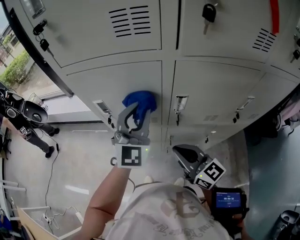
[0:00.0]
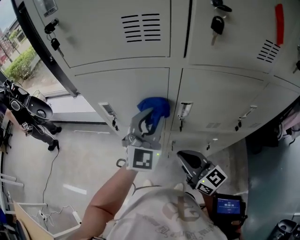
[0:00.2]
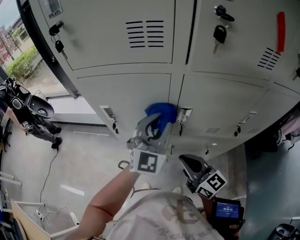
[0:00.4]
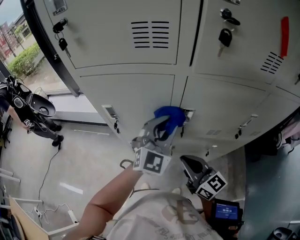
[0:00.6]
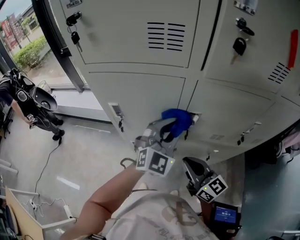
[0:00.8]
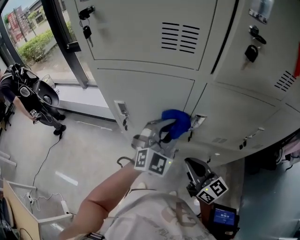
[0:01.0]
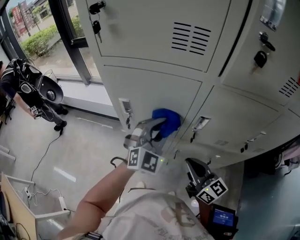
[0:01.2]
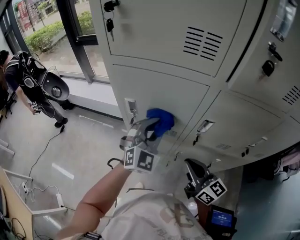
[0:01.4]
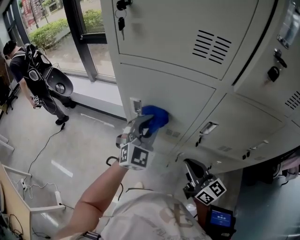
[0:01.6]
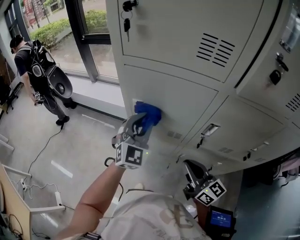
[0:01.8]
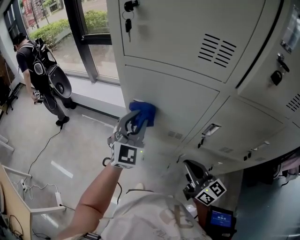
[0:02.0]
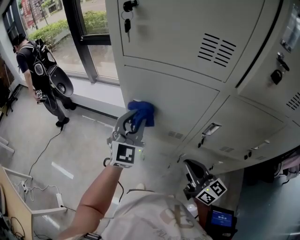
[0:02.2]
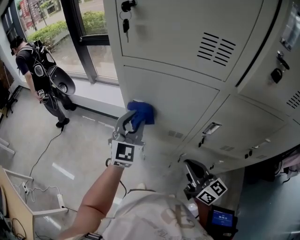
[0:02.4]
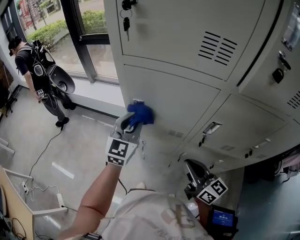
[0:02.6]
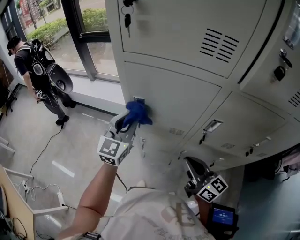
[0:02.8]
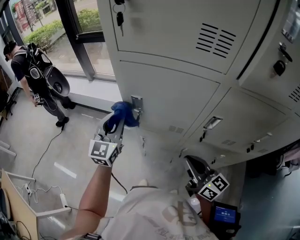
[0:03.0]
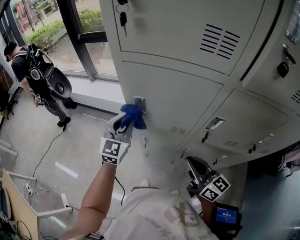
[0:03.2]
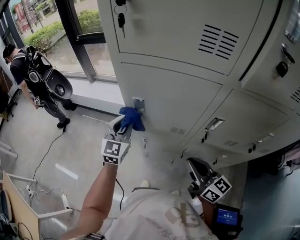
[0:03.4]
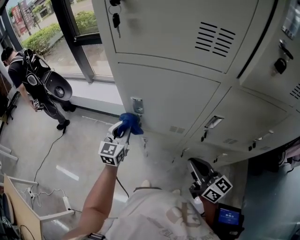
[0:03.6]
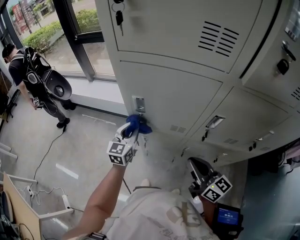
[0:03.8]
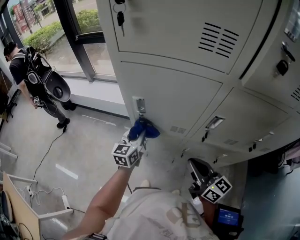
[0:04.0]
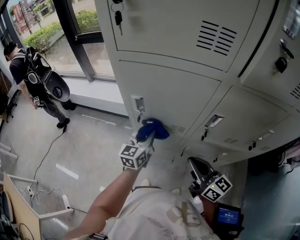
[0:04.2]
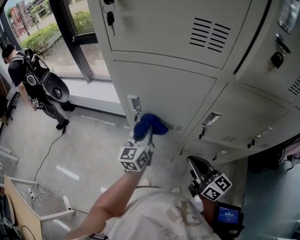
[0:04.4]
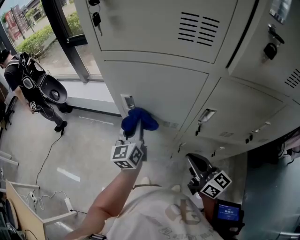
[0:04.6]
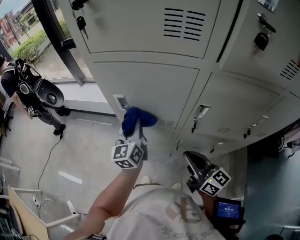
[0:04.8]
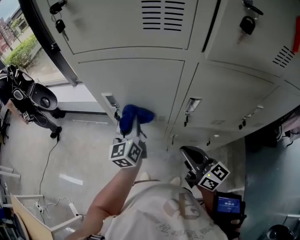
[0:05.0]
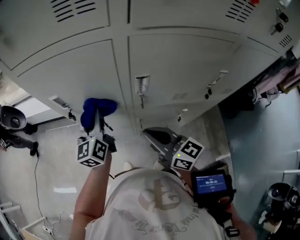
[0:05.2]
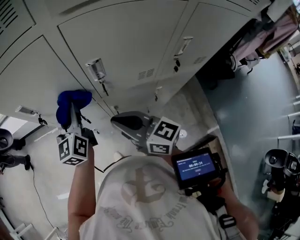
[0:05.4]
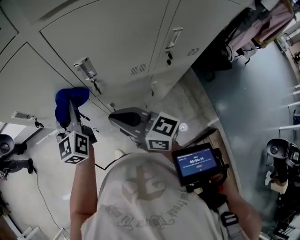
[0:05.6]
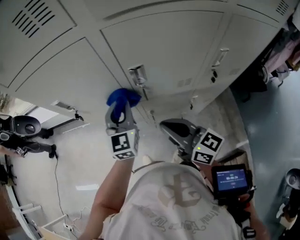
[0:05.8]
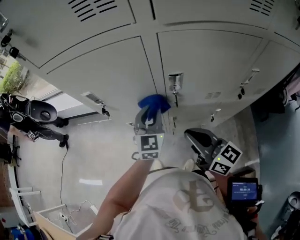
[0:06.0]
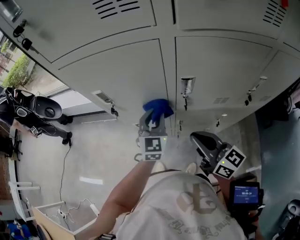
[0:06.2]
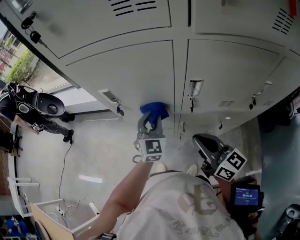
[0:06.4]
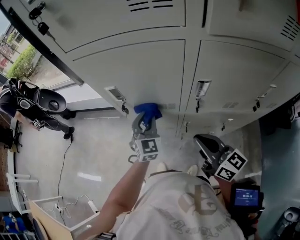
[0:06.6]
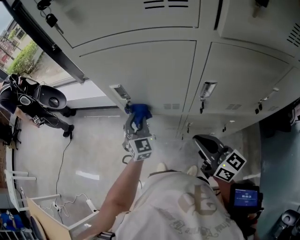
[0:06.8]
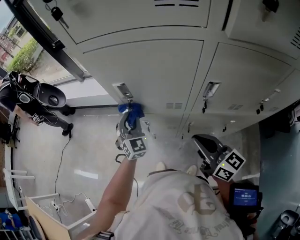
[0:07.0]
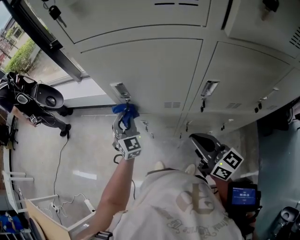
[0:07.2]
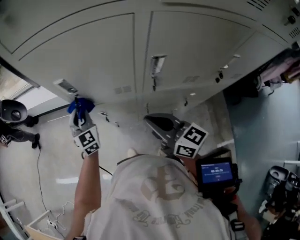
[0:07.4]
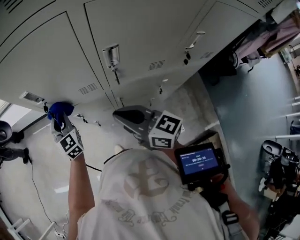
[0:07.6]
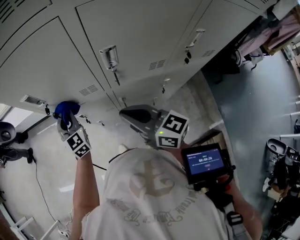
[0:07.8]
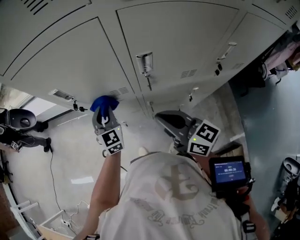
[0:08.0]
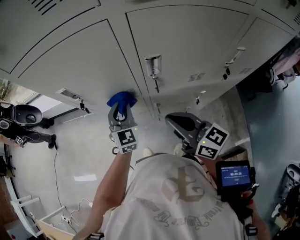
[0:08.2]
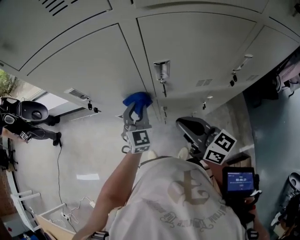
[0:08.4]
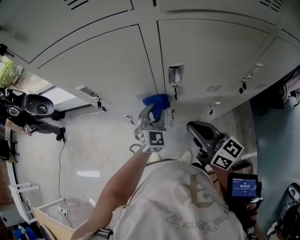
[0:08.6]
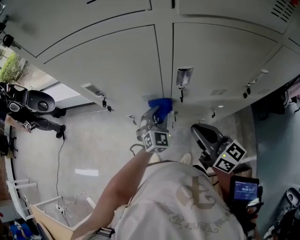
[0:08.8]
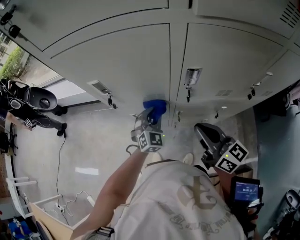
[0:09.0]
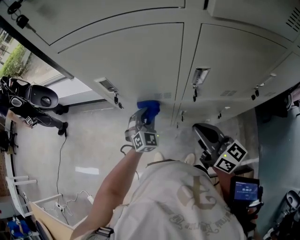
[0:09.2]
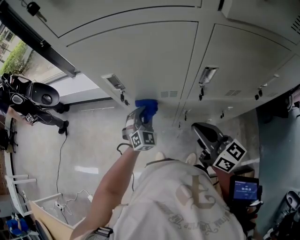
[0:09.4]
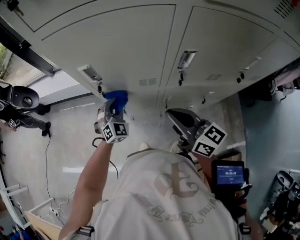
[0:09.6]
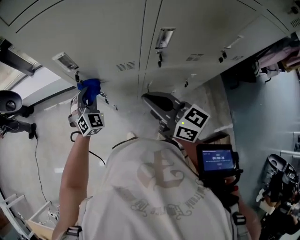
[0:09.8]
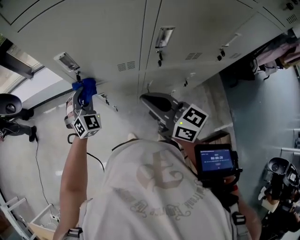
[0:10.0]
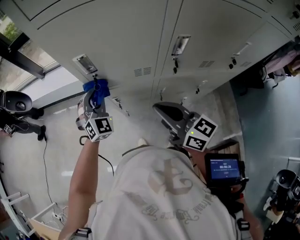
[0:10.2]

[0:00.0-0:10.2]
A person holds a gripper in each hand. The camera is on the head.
0:00.0 to 0:01.4: The left gripper shifts roughly 5 cm downward, and moves about 5 cm to the right and comes back.
0:01.4 to 0:03.0: The left gripper travels to the left by about 20 cm, and changes its angle by roughly 30 degrees.
0:03.0 to 0:04.4: The left gripper shifts approximately 15 cm to the right and downward, and swivels some 30 degrees.
0:04.4 to 0:05.8: The left gripper is displaced to the right by some 15 cm, and swivels some 30 degrees, while the right gripper shifts approximately 5 cm to the right.
0:05.8 to 0:07.2: The right gripper is displaced to the left by roughly 5 cm, while the left gripper is displaced to the left by some 20 cm, and rotates some 30 degrees.
0:07.2 to 0:08.8: The right gripper moves to the right, roughly 5 cm; the left gripper travels to the right and backward by approximately 25 cm, and swivels approximately 30 degrees.
0:08.8 to 0:10.2: The left gripper heads to the left, covering roughly 25 cm, and rotates approximately 20 degrees, while the right gripper goes some 15 cm to the left.

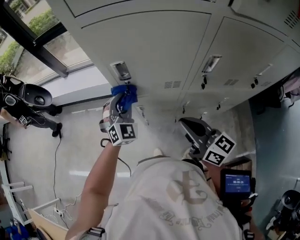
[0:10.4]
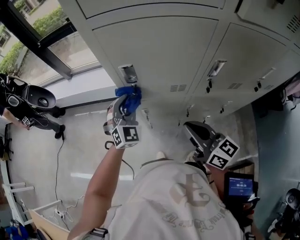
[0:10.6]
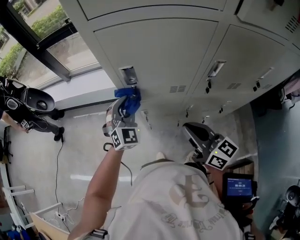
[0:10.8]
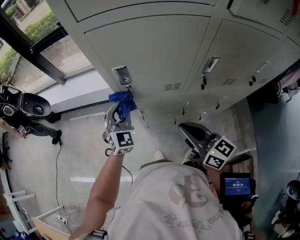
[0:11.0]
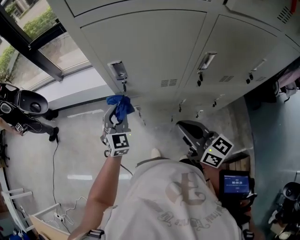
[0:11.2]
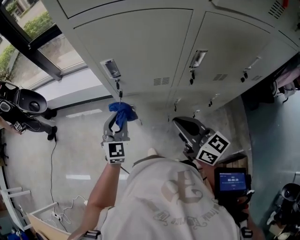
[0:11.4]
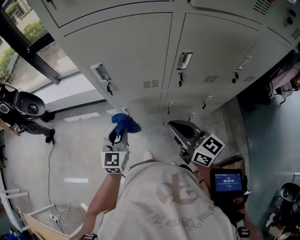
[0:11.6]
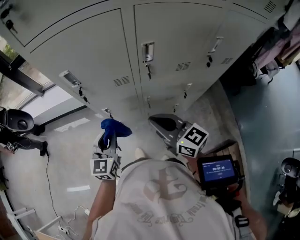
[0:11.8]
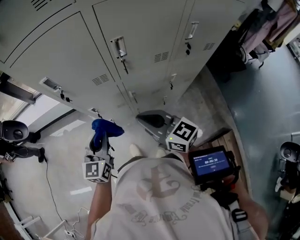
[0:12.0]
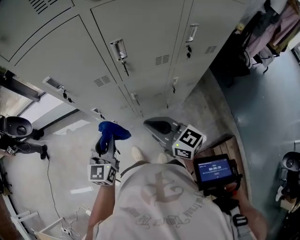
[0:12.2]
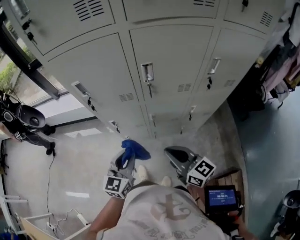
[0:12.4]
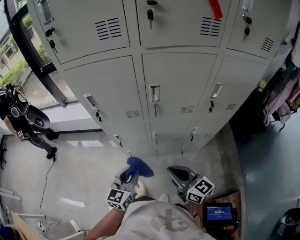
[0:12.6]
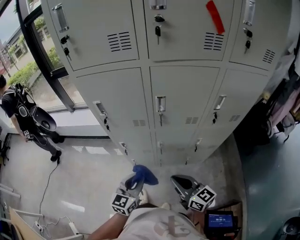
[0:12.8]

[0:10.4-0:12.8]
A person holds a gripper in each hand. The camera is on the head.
0:10.4 to 0:11.6: The left gripper heads backward, covering roughly 15 cm, and turns by roughly 40 degrees; the right gripper changes place by roughly 5 cm.
0:11.6 to 0:12.8: The two grippers go roughly 20 cm backward and to the right.

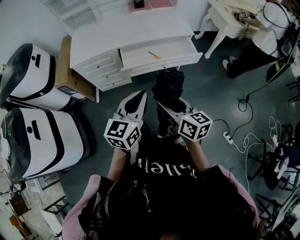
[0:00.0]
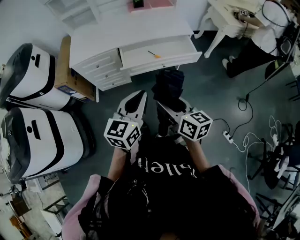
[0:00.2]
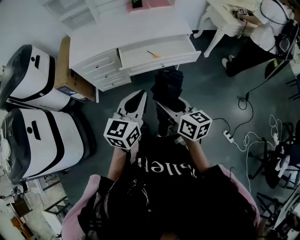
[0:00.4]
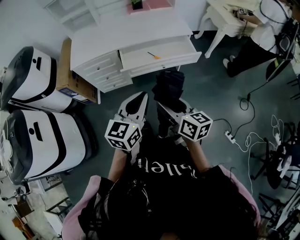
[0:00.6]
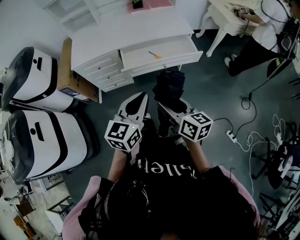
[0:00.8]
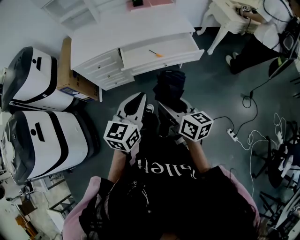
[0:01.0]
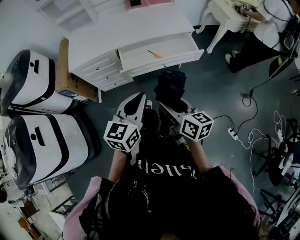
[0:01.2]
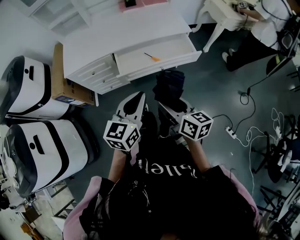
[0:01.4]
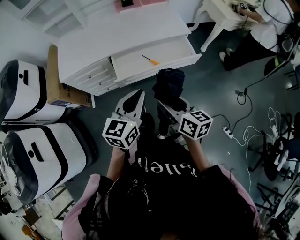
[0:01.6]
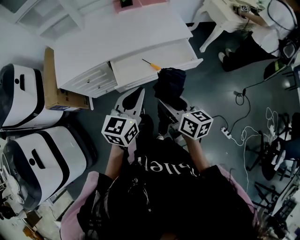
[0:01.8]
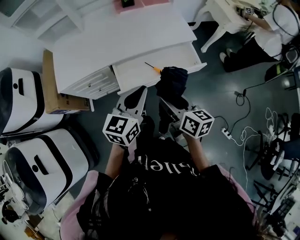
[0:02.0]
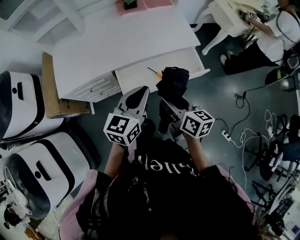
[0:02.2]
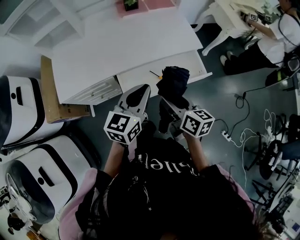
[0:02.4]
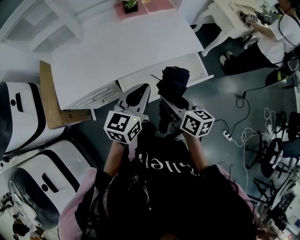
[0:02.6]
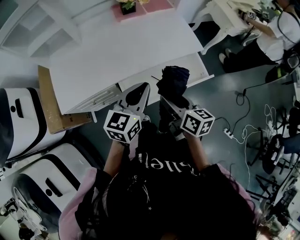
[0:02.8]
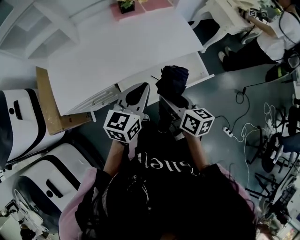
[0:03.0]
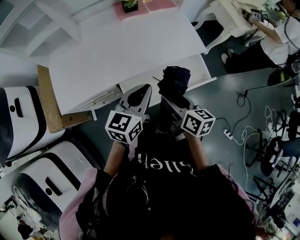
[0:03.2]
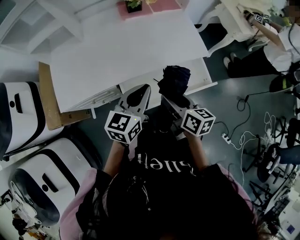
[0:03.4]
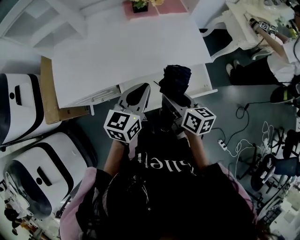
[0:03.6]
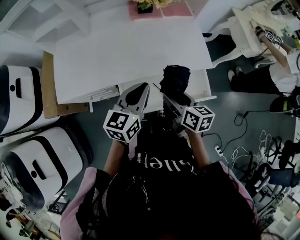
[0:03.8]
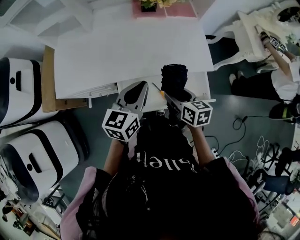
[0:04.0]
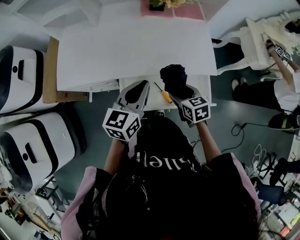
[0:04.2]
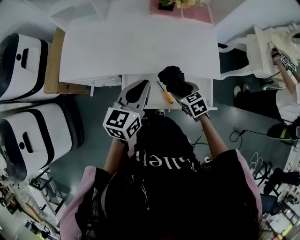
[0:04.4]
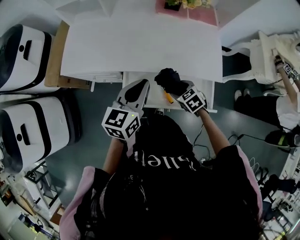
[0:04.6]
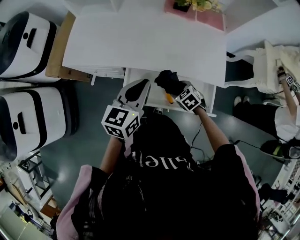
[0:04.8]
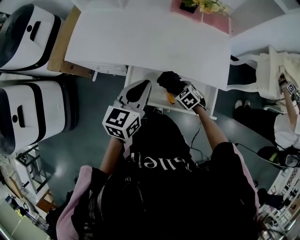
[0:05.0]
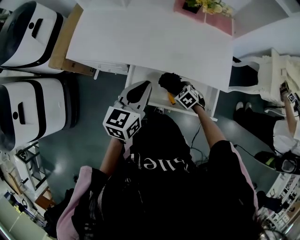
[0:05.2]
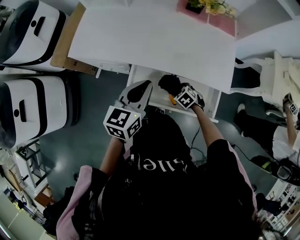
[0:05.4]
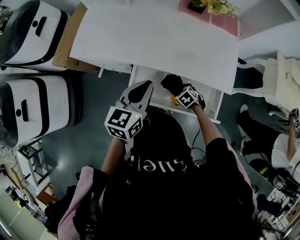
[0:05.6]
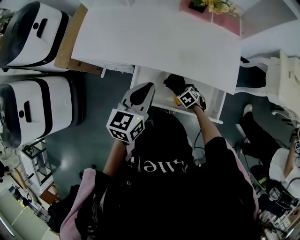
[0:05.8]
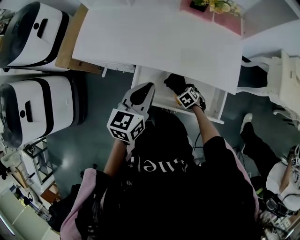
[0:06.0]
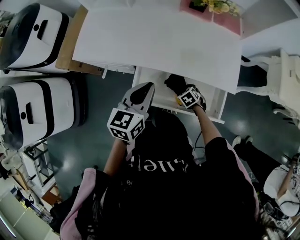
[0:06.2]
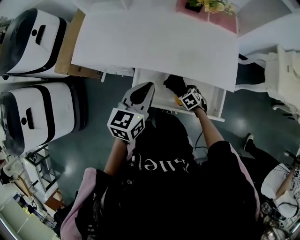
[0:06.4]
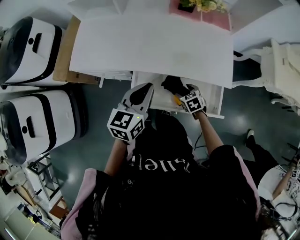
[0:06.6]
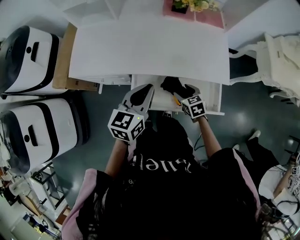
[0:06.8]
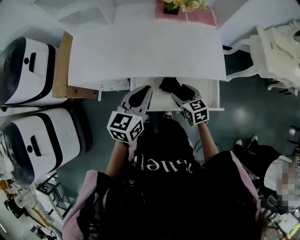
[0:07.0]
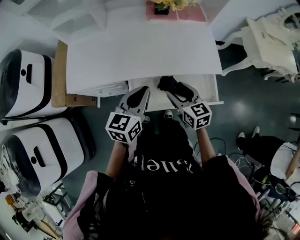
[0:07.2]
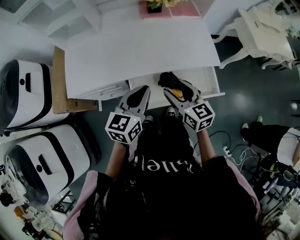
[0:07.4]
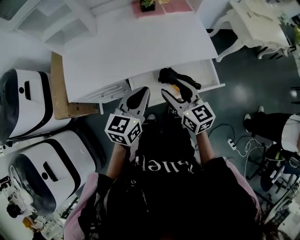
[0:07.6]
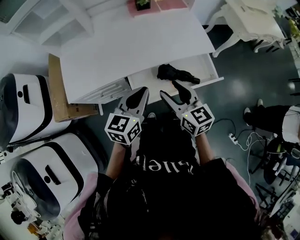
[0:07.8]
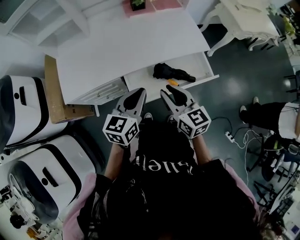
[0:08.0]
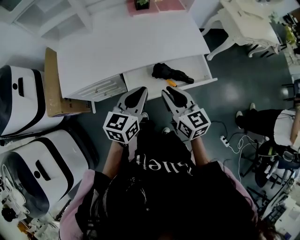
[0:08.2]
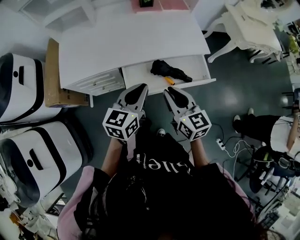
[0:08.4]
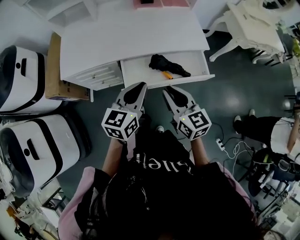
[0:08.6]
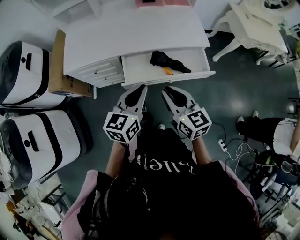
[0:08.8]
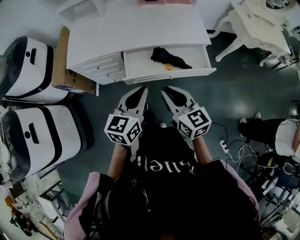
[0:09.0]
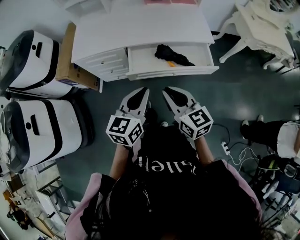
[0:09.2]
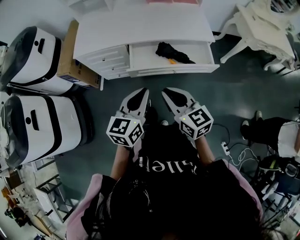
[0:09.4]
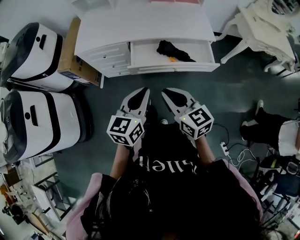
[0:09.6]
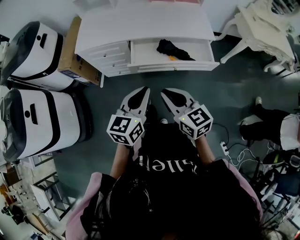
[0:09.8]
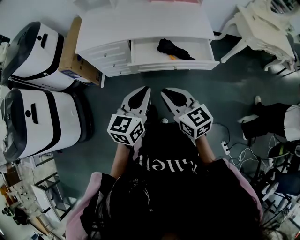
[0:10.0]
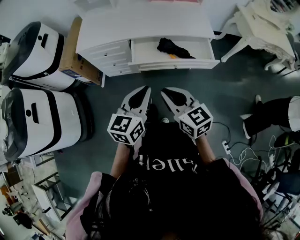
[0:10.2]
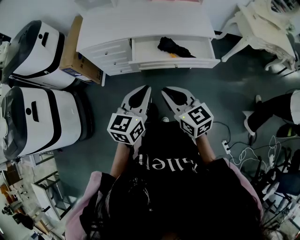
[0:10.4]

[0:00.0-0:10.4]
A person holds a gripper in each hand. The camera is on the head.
0:00.0 to 0:01.4: The grippers both shift forward by roughly 5 cm.
0:01.4 to 0:03.0: Both grippers move forward, roughly 30 cm.
0:03.0 to 0:04.4: The right gripper goes some 15 cm downward, and angles its fingers downward, by roughly 30 degrees; the left gripper moves some 5 cm, and rotates some 30 degrees.
0:04.4 to 0:06.0: The right gripper moves downward, roughly 20 cm, and rotates some 30 degrees.
0:06.0 to 0:07.4: The left gripper ends up some 5 cm from where it was, and turns by roughly 20 degrees, while the right gripper is displaced upward by some 35 cm, and points its fingers approximately 50 degrees further upward.
0:07.4 to 0:09.0: The grippers both shift backward by roughly 25 cm. The right gripper closes.
0:09.0 to 0:10.4: Both grippers move backward, about 10 cm.
